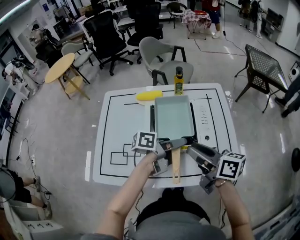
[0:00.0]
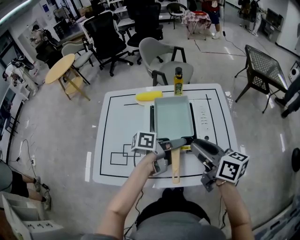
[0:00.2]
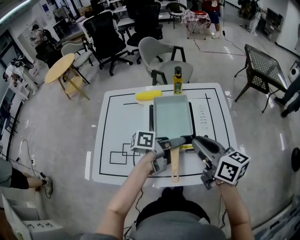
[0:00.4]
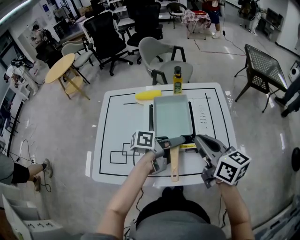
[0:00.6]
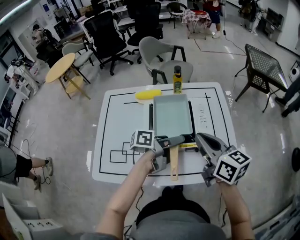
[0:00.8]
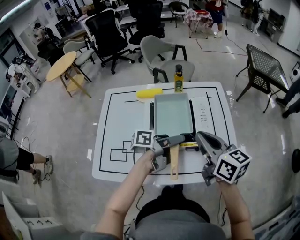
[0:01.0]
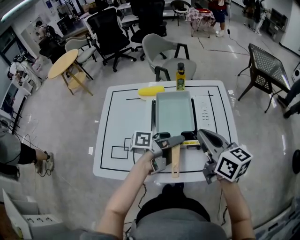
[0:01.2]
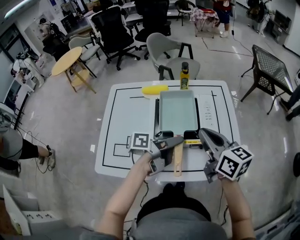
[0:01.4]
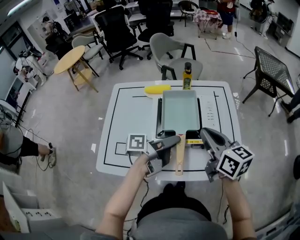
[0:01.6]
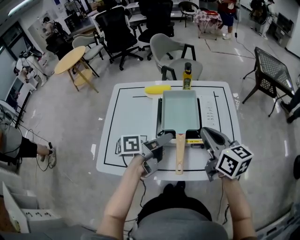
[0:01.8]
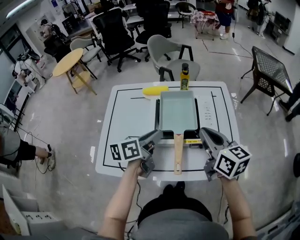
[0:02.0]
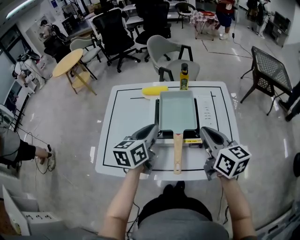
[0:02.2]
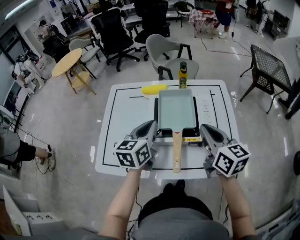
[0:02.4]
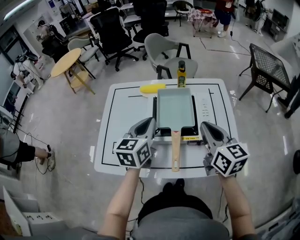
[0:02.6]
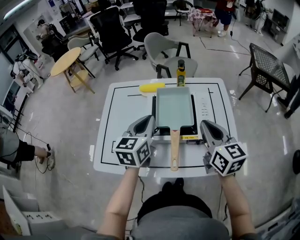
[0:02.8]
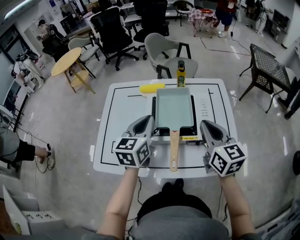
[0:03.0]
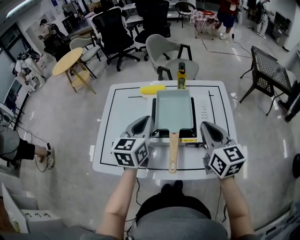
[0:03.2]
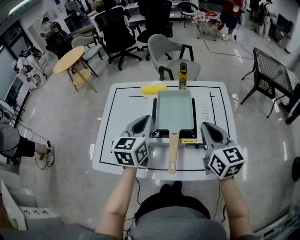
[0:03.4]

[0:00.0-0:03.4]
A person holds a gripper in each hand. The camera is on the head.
0:00.0 to 0:01.6: The left gripper ends up some 5 cm from where it was, while the right gripper turns by some 20 degrees, and closes its fingers.
0:01.6 to 0:03.4: The left gripper shifts approximately 10 cm to the left, upward and forward, rotates around the line of its fingers by approximately 70 degrees, clockwise from behind, and closes its fingers.

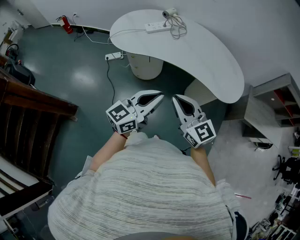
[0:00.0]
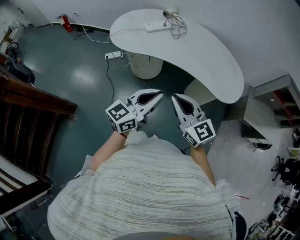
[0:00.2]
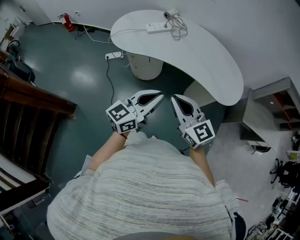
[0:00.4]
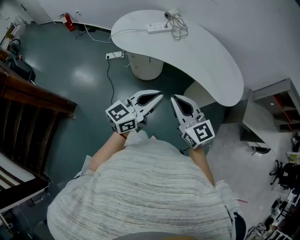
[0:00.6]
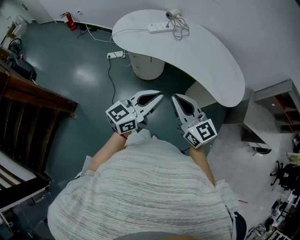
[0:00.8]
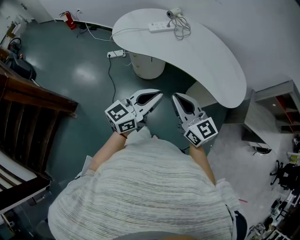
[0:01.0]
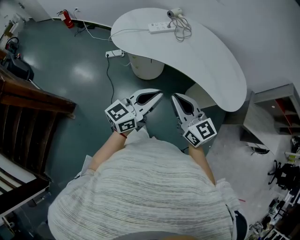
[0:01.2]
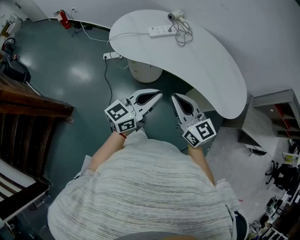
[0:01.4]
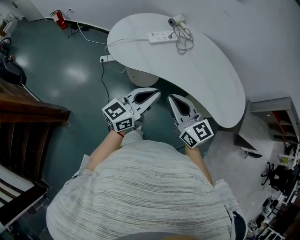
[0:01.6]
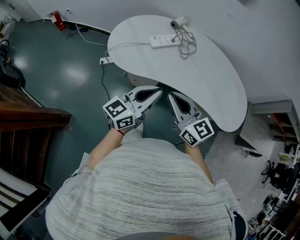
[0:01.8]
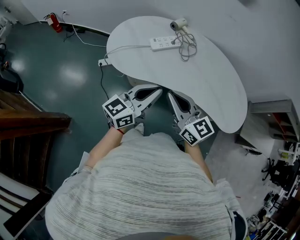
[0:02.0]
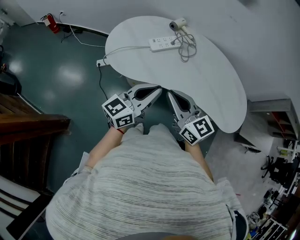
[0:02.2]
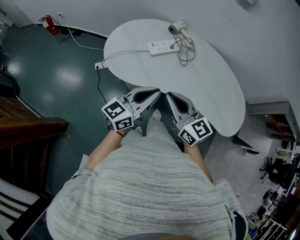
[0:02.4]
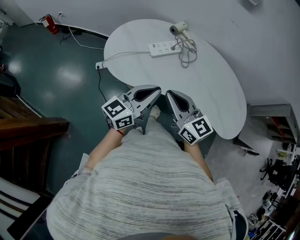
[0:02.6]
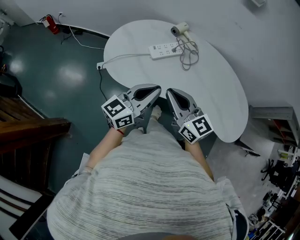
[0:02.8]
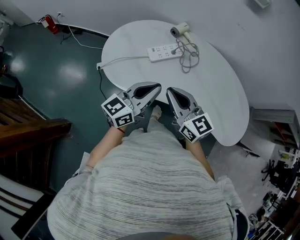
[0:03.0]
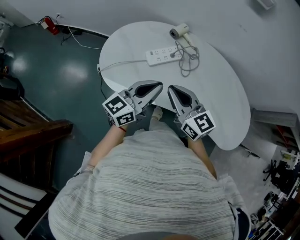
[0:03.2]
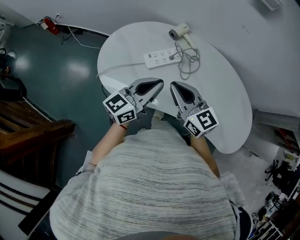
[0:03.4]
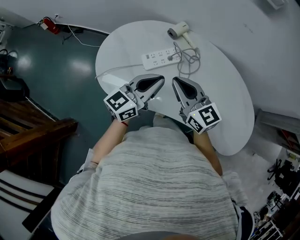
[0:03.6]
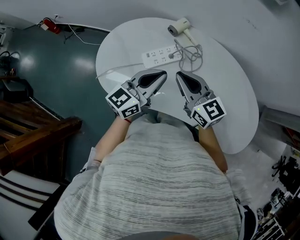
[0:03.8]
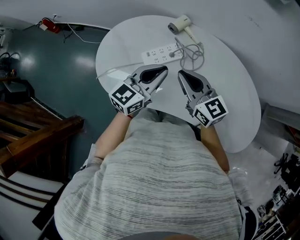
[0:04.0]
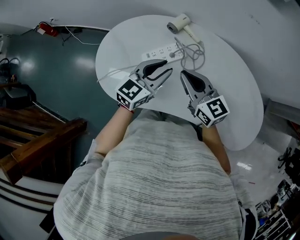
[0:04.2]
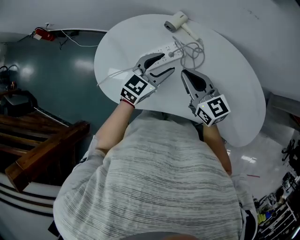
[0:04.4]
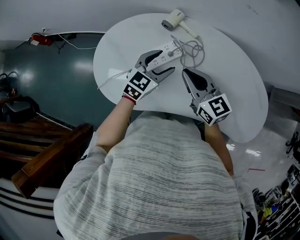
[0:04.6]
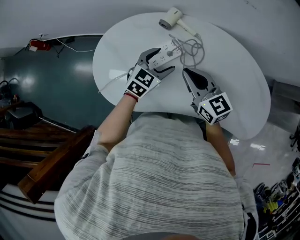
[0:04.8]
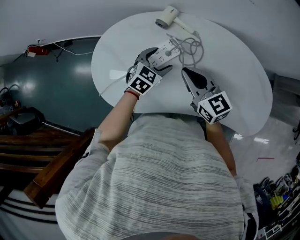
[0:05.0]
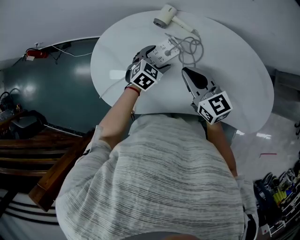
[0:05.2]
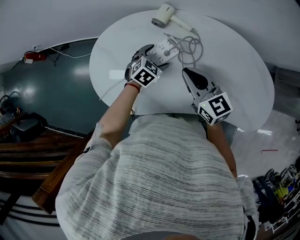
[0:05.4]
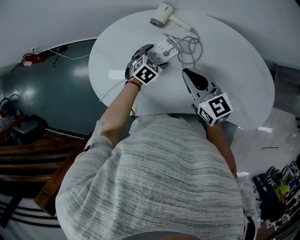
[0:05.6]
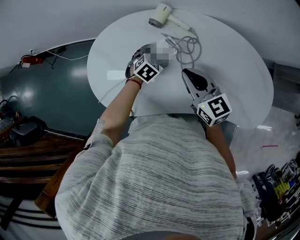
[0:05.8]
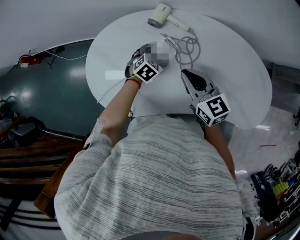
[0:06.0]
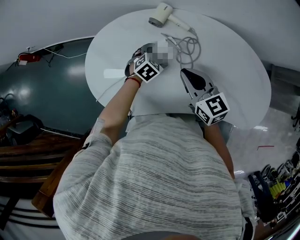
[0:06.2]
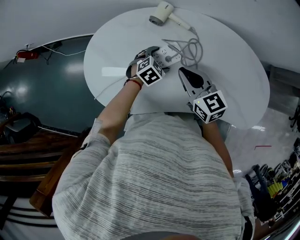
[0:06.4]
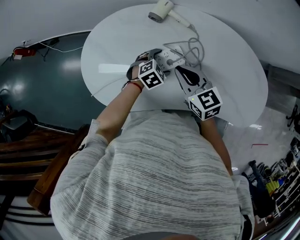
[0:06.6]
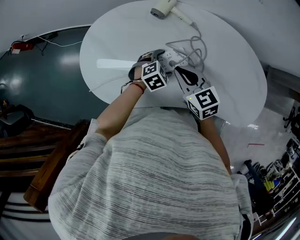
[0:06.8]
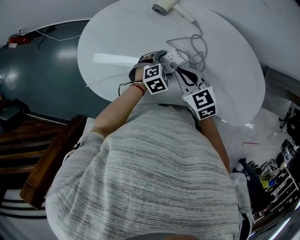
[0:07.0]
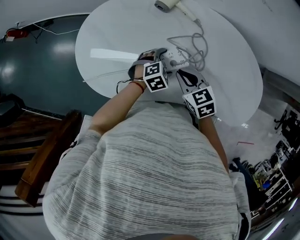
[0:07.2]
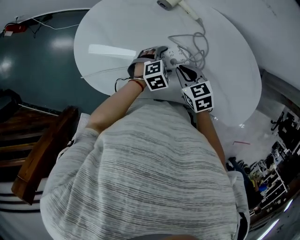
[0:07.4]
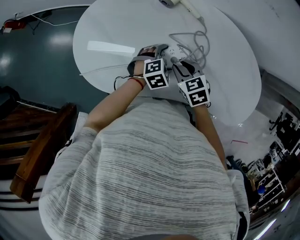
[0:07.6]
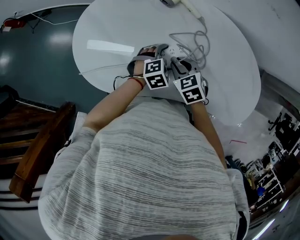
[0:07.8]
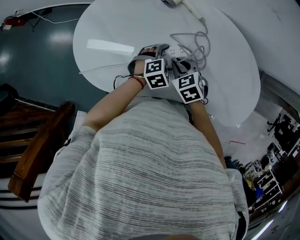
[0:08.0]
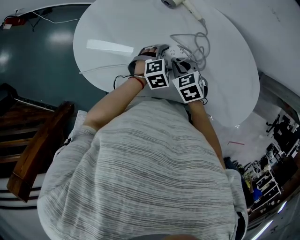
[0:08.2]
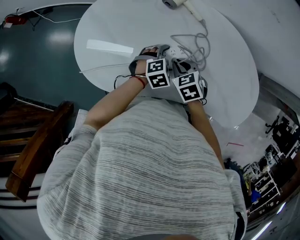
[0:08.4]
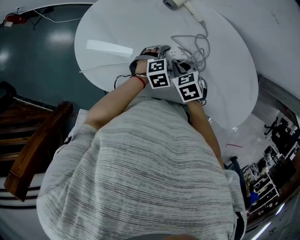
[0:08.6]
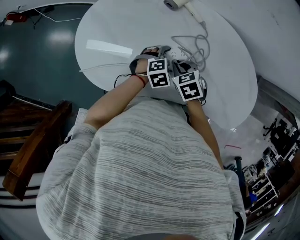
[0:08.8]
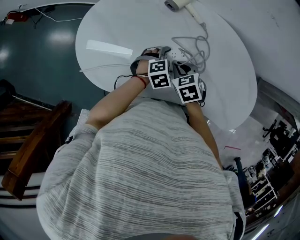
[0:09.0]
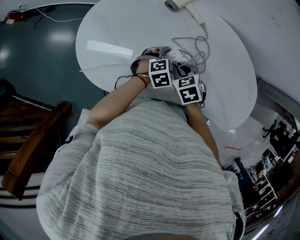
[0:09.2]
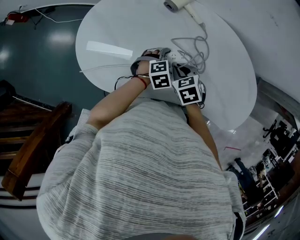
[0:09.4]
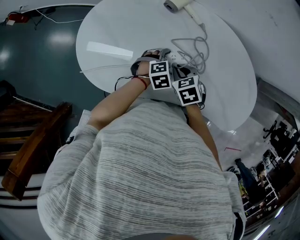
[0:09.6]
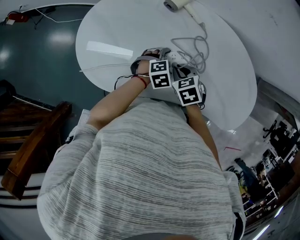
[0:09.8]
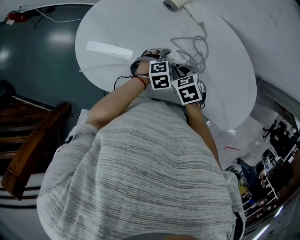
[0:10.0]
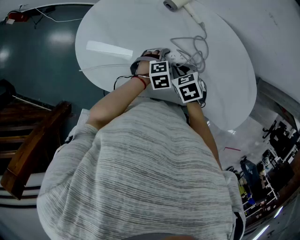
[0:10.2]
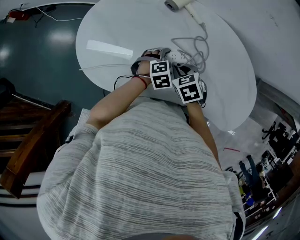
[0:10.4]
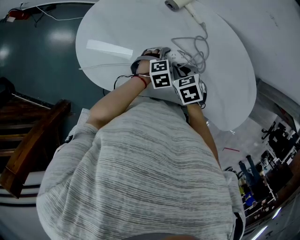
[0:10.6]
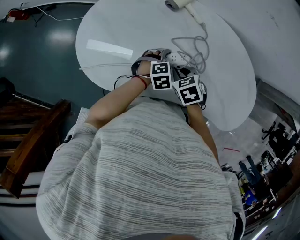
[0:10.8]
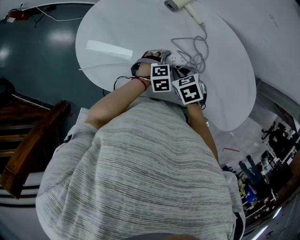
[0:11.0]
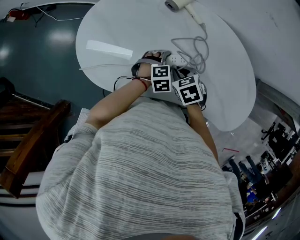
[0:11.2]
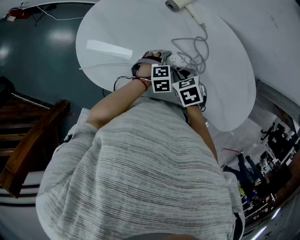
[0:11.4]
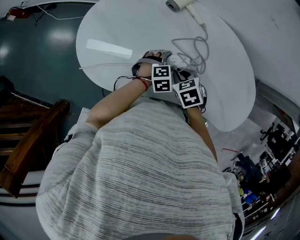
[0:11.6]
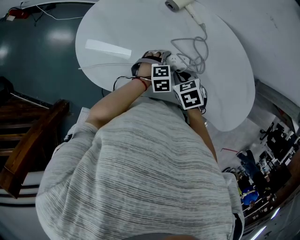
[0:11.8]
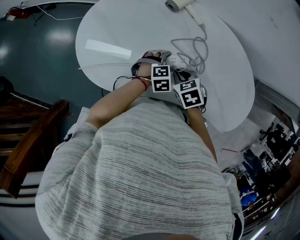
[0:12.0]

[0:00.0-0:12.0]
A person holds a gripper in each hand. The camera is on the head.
0:00.0 to 0:01.6: The grippers both shift forward and to the left by about 20 cm.
0:01.6 to 0:03.0: The grippers both shift forward by approximately 20 cm.
0:03.0 to 0:04.4: The right gripper travels forward by roughly 20 cm; the left gripper goes approximately 25 cm forward and downward, turns by roughly 30 degrees, and opens its fingers.
0:04.4 to 0:06.0: The left gripper travels downward by some 20 cm, angles its fingers downward, by approximately 40 degrees, and opens its fingers.
0:06.0 to 0:07.6: The left gripper travels backward and to the right by about 10 cm. The right gripper shifts some 15 cm downward, and tilts its fingers some 40 degrees downward.
0:07.6 to 0:09.0: There are only small adjustments of the grippers.
0:09.0 to 0:10.4: Both grippers stay about where they are.
0:10.4 to 0:12.0: The grippers stay close to where they were, moving slightly.

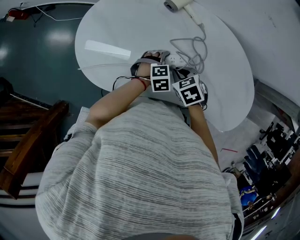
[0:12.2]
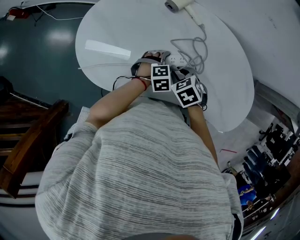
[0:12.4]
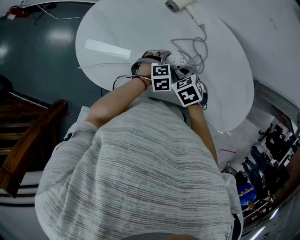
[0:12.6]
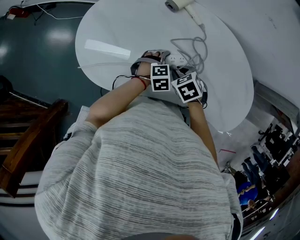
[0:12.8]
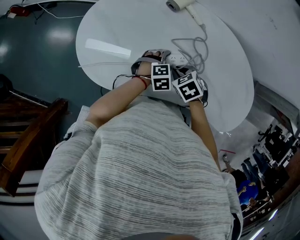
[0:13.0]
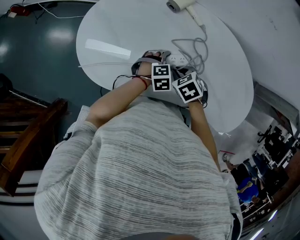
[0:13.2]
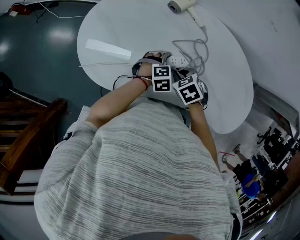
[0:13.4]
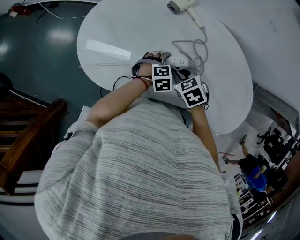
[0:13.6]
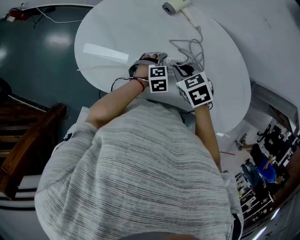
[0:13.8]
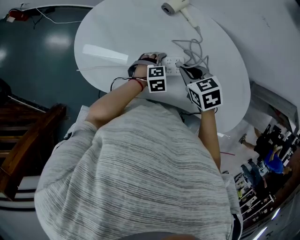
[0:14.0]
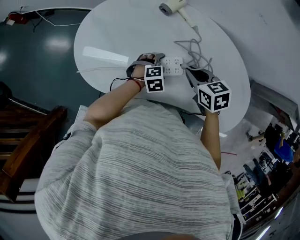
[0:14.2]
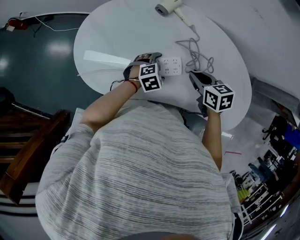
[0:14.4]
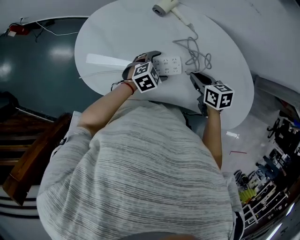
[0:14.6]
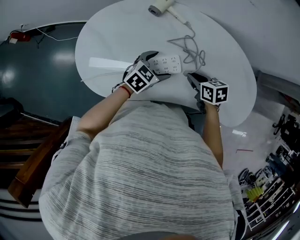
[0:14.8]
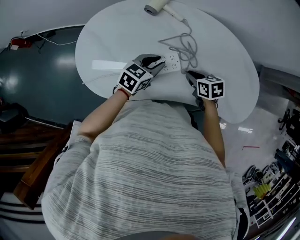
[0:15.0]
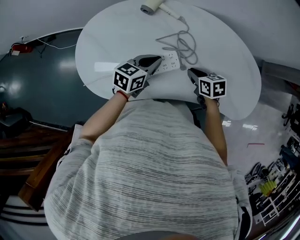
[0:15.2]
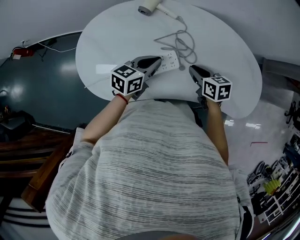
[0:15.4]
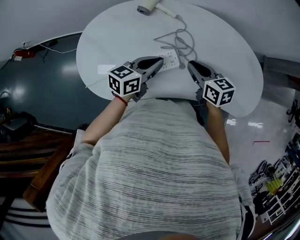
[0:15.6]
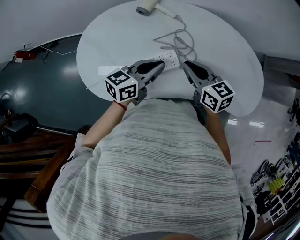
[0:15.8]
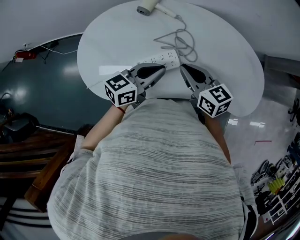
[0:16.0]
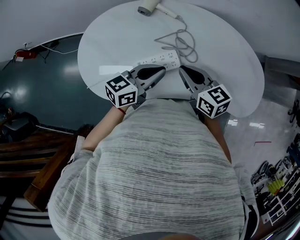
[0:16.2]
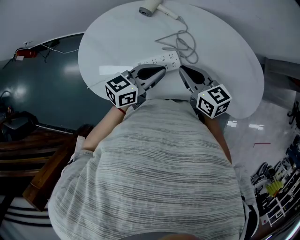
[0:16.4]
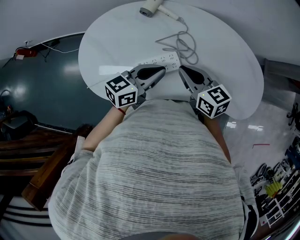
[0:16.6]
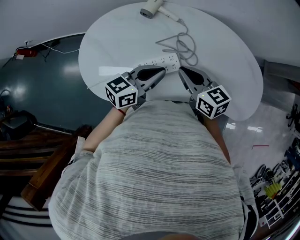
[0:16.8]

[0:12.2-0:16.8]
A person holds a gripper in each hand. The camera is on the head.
0:12.2 to 0:13.8: The right gripper travels upward by some 5 cm.
0:13.8 to 0:15.2: The left gripper shifts some 15 cm upward, tips its fingers upward by about 40 degrees, and closes. Meanwhile the right gripper goes some 15 cm to the right and downward, and changes its angle by roughly 40 degrees.
0:15.2 to 0:16.8: The right gripper travels upward and to the left by roughly 15 cm, and rotates approximately 30 degrees, while the left gripper travels upward by roughly 10 cm.

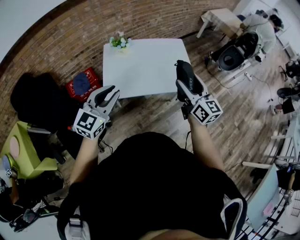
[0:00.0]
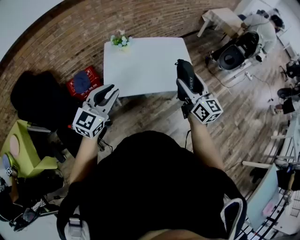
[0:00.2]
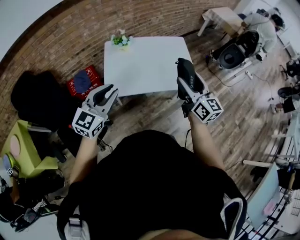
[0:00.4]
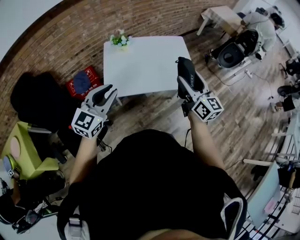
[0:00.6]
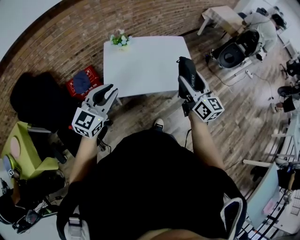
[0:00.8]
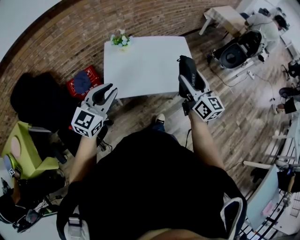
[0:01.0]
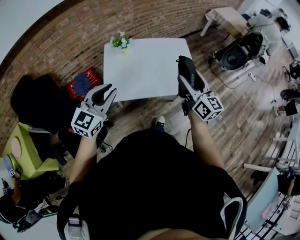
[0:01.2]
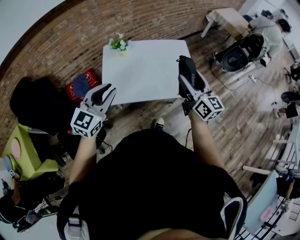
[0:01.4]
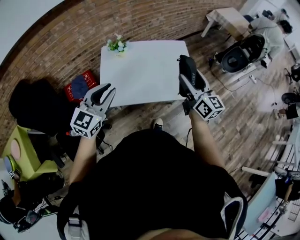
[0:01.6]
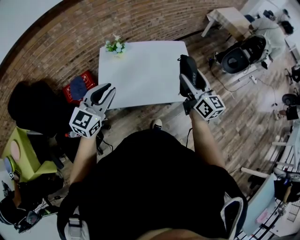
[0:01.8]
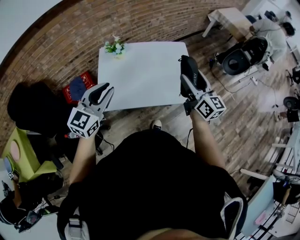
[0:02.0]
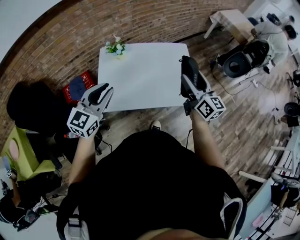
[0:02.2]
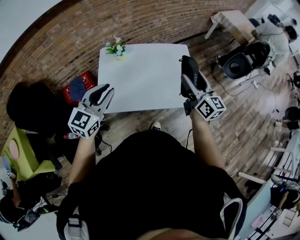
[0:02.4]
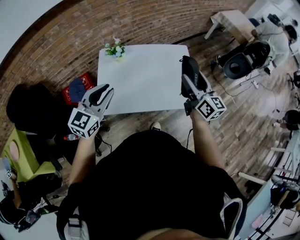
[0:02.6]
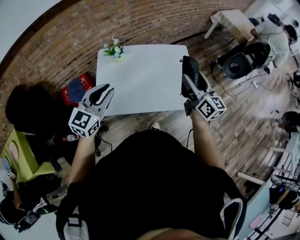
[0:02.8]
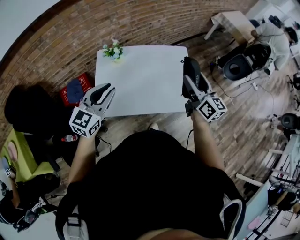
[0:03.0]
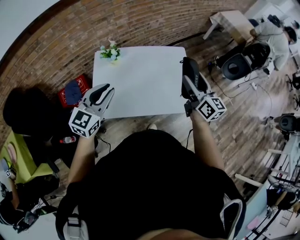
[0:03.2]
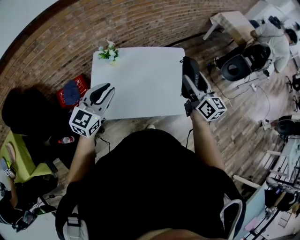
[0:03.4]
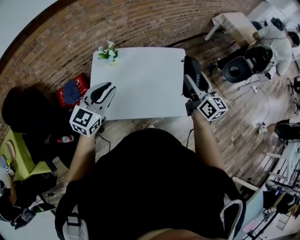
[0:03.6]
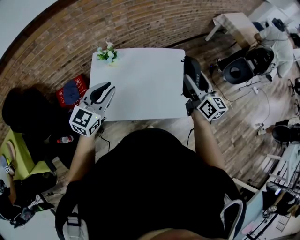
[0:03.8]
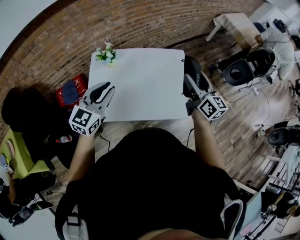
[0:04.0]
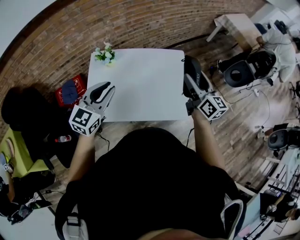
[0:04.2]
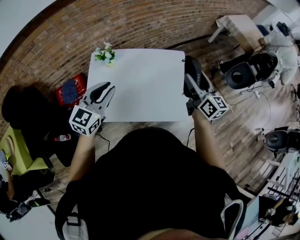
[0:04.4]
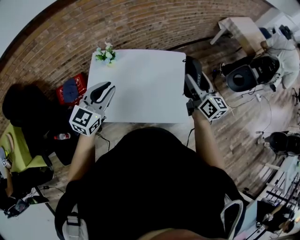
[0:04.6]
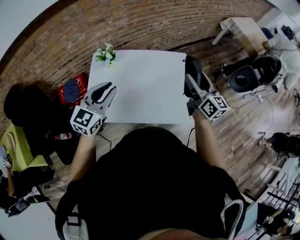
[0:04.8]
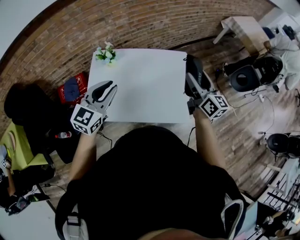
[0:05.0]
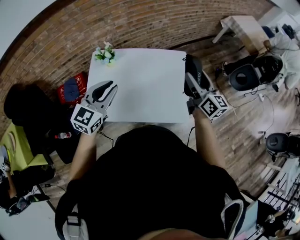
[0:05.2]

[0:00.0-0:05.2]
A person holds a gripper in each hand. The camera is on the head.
0:00.0 to 0:01.8: Both grippers travel together forward, some 15 cm.
0:01.8 to 0:03.4: The left gripper moves forward, roughly 10 cm. Meanwhile the right gripper is displaced forward and to the right by roughly 15 cm.
0:03.4 to 0:05.2: The right gripper moves forward and to the right, approximately 10 cm. Meanwhile the left gripper heads to the right and forward, covering approximately 10 cm.
